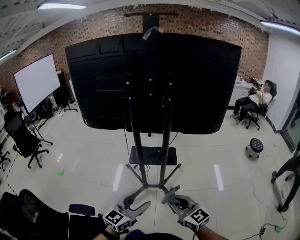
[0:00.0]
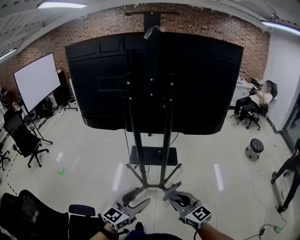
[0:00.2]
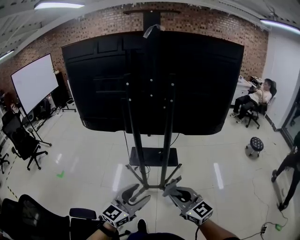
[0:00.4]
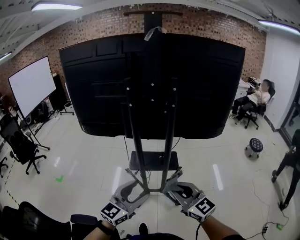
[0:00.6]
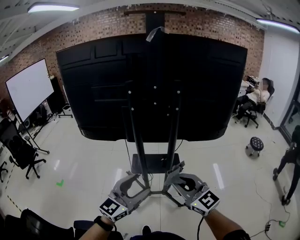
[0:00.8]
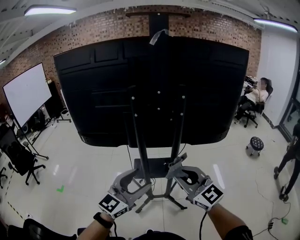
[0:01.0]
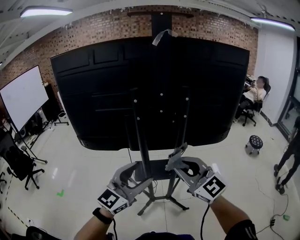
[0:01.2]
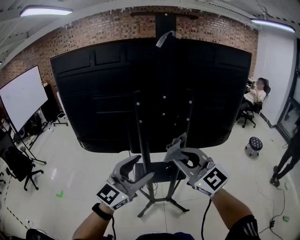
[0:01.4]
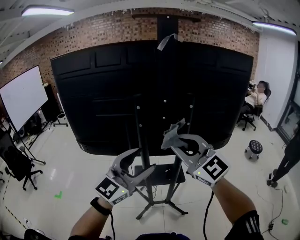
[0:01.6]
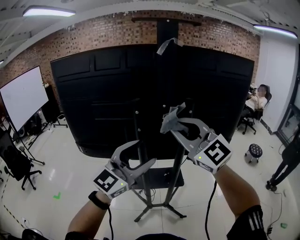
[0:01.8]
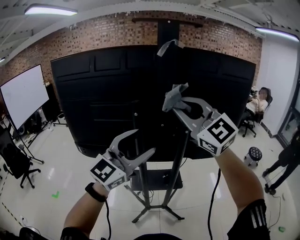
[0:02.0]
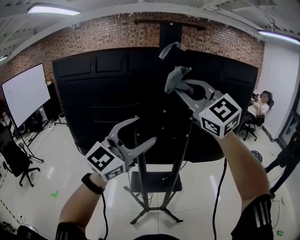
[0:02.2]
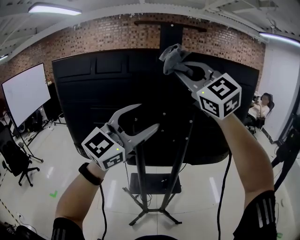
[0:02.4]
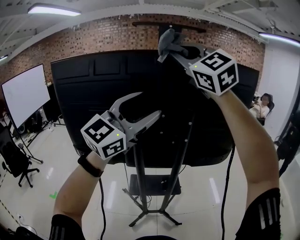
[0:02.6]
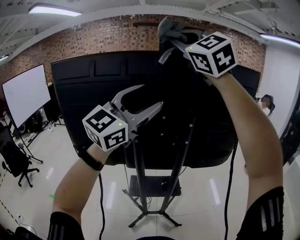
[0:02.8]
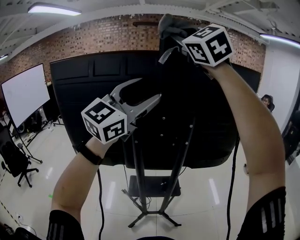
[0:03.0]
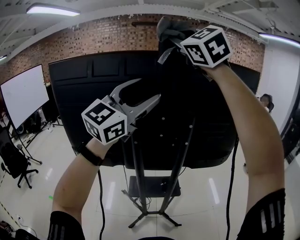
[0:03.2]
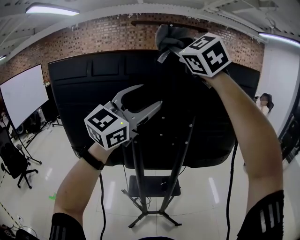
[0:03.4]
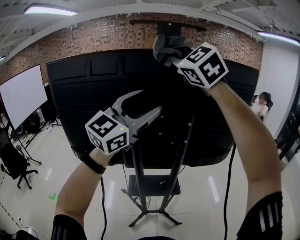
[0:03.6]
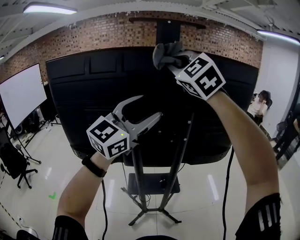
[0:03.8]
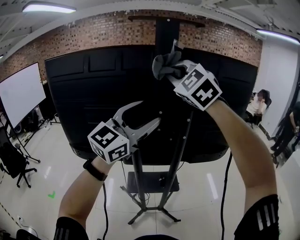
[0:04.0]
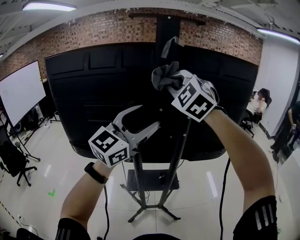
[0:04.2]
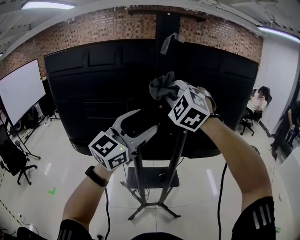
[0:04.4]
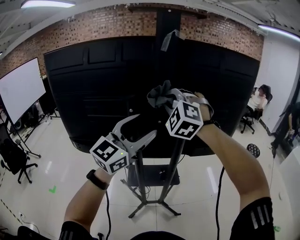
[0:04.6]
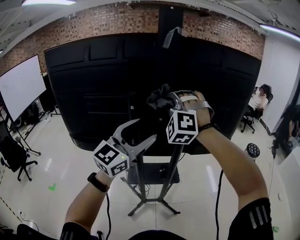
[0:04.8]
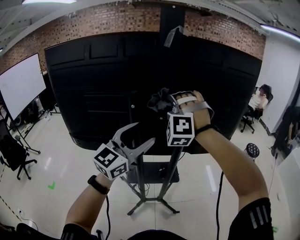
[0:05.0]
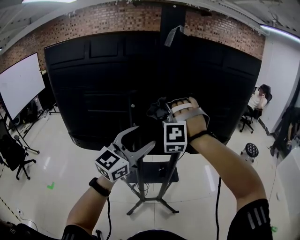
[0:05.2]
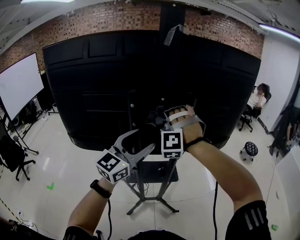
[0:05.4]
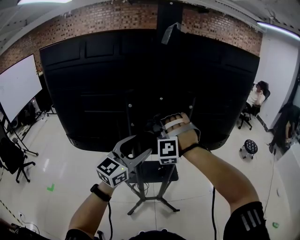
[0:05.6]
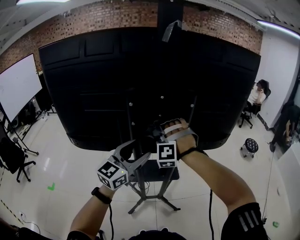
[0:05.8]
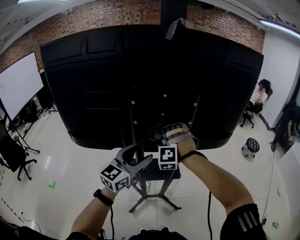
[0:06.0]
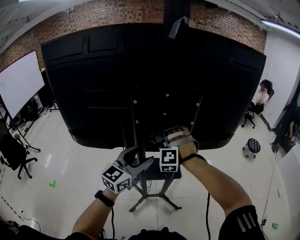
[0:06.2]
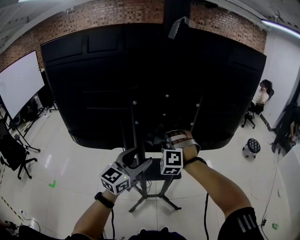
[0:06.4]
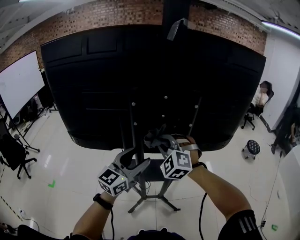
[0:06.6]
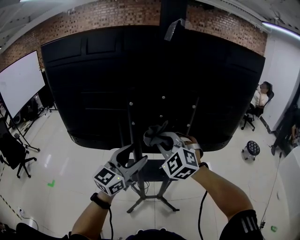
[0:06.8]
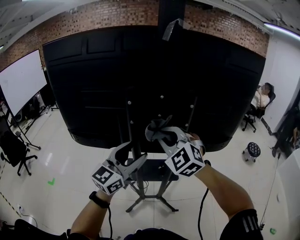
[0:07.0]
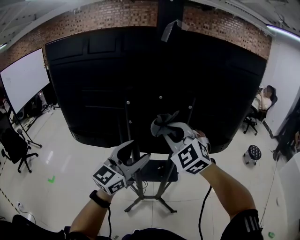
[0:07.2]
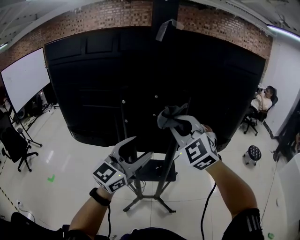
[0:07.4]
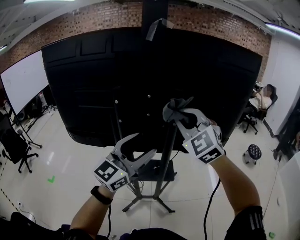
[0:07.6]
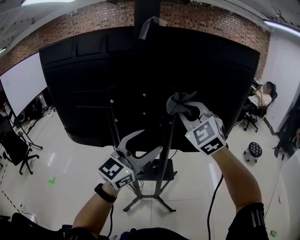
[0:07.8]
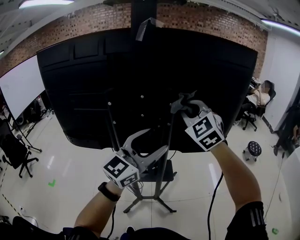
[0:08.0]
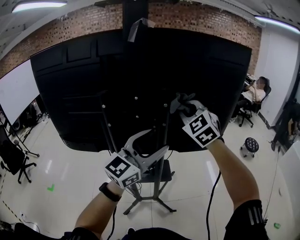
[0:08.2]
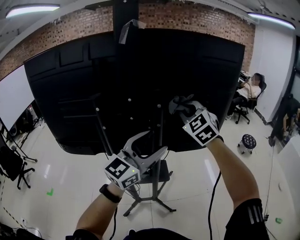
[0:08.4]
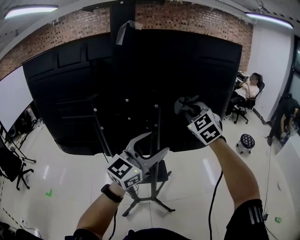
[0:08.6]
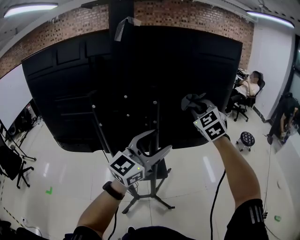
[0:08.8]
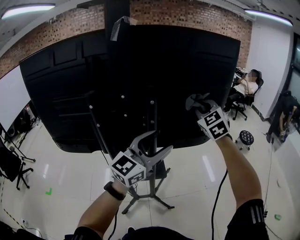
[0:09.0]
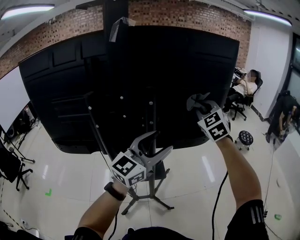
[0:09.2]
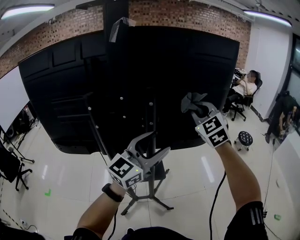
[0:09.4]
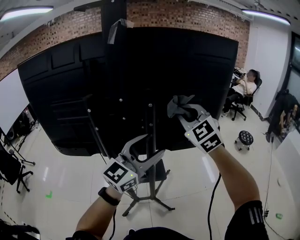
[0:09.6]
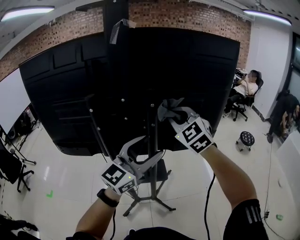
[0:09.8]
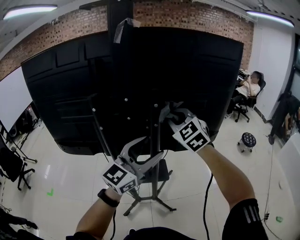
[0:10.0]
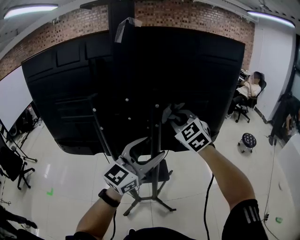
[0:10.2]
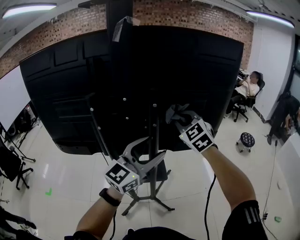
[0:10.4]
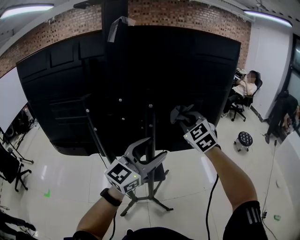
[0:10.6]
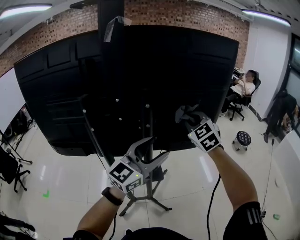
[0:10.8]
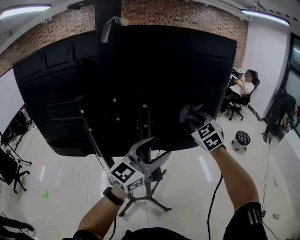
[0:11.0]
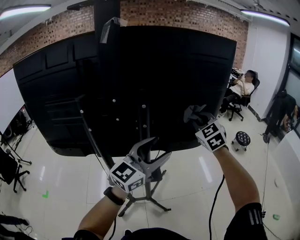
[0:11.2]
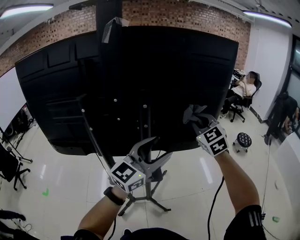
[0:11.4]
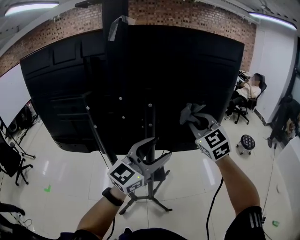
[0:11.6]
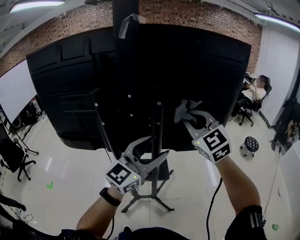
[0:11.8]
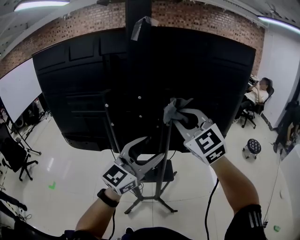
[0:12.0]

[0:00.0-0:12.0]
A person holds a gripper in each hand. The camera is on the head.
0:00.0 to 0:01.6: The right gripper shifts approximately 40 cm upward, forward and to the left, and rotates roughly 40 degrees. Meanwhile the left gripper shifts about 35 cm forward and upward, and changes its angle by roughly 30 degrees.
0:01.6 to 0:03.0: Both grippers travel together upward and forward, about 35 cm. The right gripper changes its angle by roughly 30 degrees.
0:03.0 to 0:04.4: The left gripper shifts some 15 cm downward. The right gripper goes roughly 25 cm downward, and swivels about 30 degrees.
0:04.4 to 0:06.0: The grippers both shift downward by some 25 cm. The right gripper changes its angle by roughly 40 degrees.
0:06.0 to 0:07.6: The left gripper goes roughly 10 cm upward and to the right. The right gripper shifts about 20 cm upward and to the right, and rolls clockwise, seen from behind, by some 50 degrees.
0:07.6 to 0:09.0: The left gripper shifts some 10 cm to the right. Meanwhile the right gripper is displaced to the right and forward by roughly 20 cm, and swivels some 20 degrees.
0:09.0 to 0:10.4: The right gripper shifts about 10 cm to the left.
0:10.4 to 0:12.0: The right gripper travels backward and upward by about 10 cm, and travels to the right and back again, some 10 cm each way.

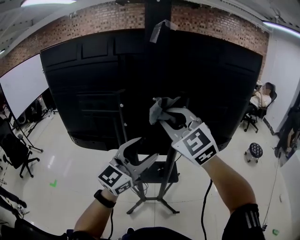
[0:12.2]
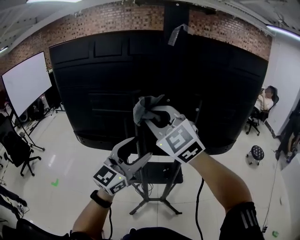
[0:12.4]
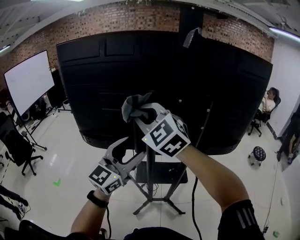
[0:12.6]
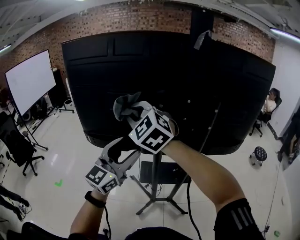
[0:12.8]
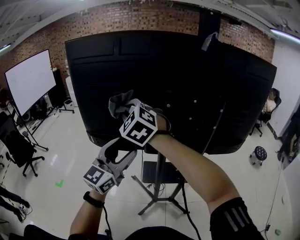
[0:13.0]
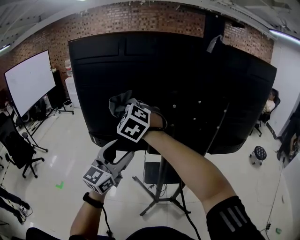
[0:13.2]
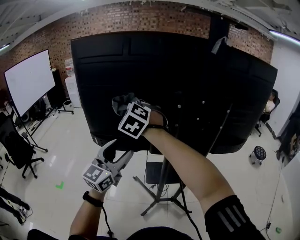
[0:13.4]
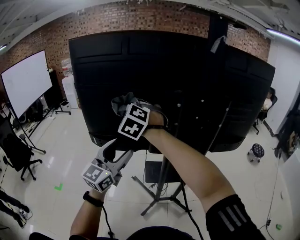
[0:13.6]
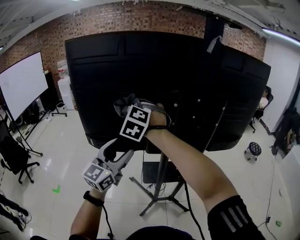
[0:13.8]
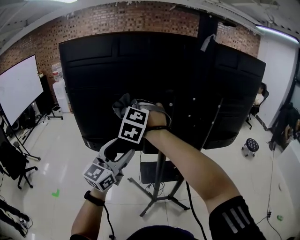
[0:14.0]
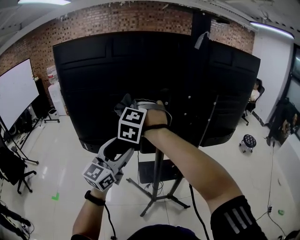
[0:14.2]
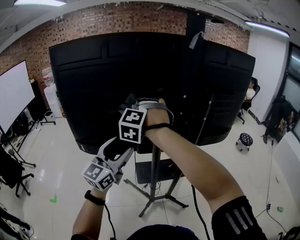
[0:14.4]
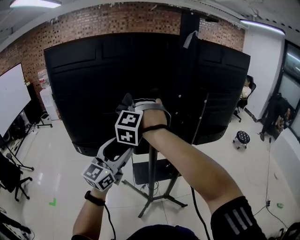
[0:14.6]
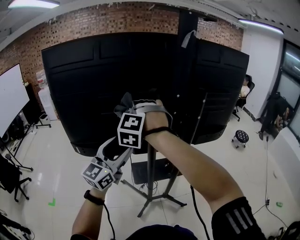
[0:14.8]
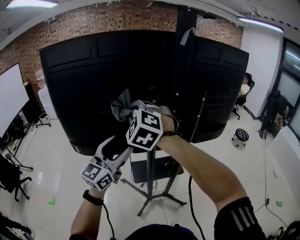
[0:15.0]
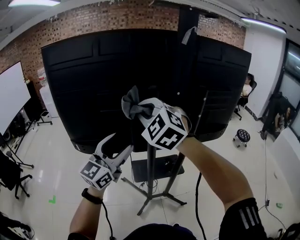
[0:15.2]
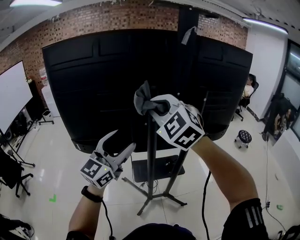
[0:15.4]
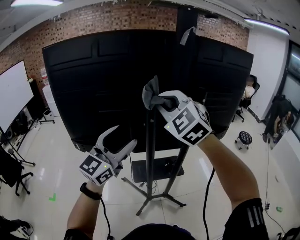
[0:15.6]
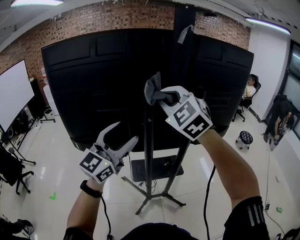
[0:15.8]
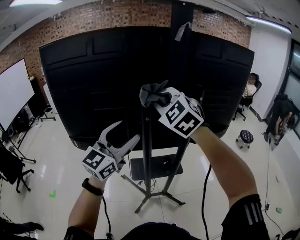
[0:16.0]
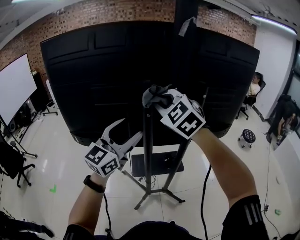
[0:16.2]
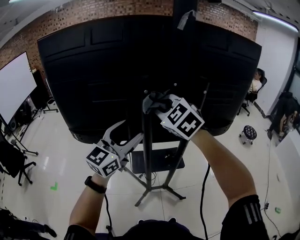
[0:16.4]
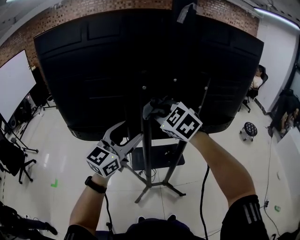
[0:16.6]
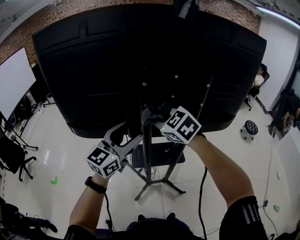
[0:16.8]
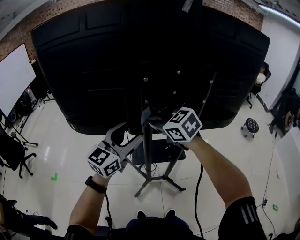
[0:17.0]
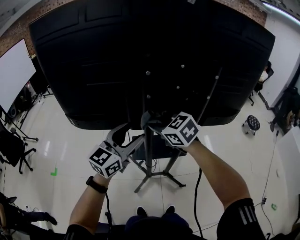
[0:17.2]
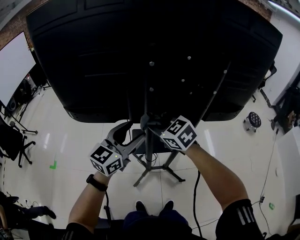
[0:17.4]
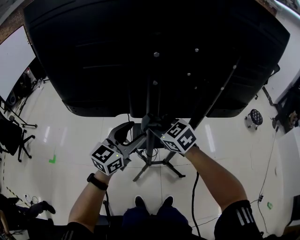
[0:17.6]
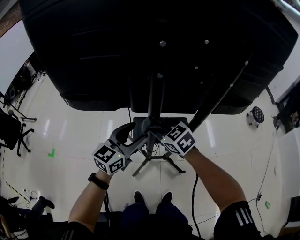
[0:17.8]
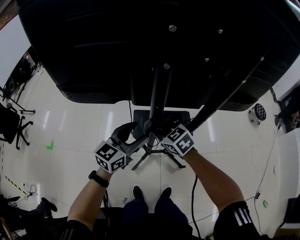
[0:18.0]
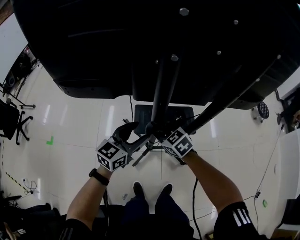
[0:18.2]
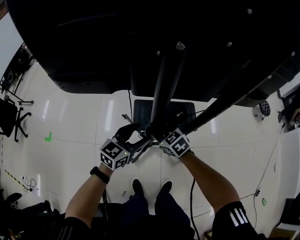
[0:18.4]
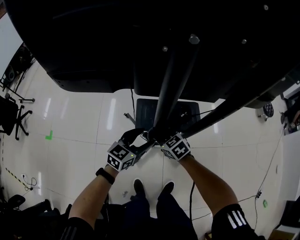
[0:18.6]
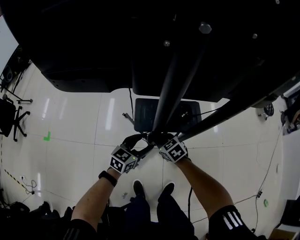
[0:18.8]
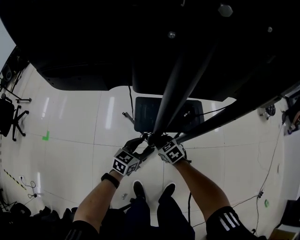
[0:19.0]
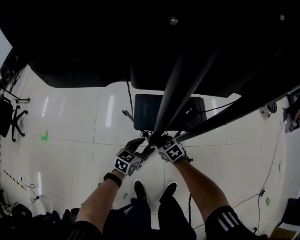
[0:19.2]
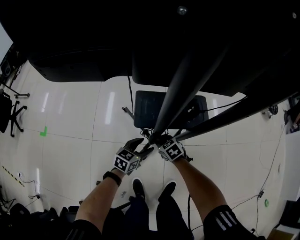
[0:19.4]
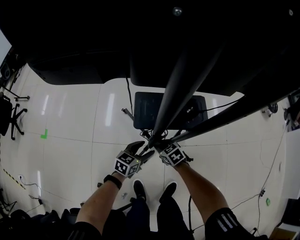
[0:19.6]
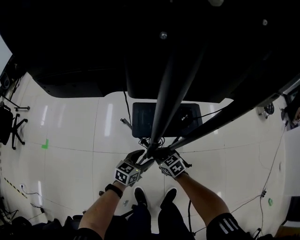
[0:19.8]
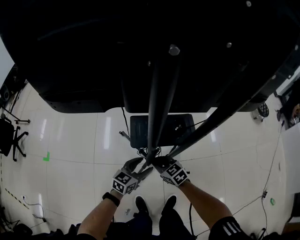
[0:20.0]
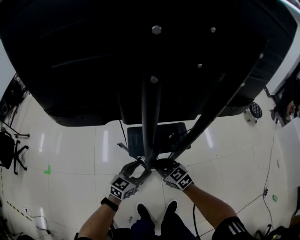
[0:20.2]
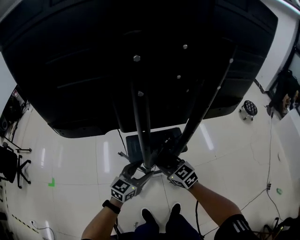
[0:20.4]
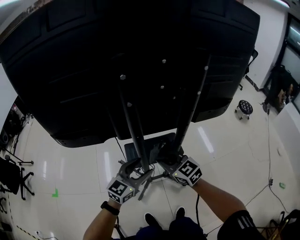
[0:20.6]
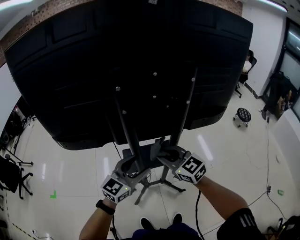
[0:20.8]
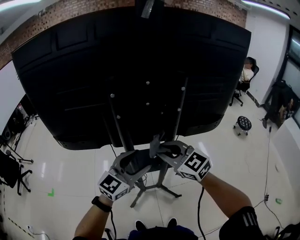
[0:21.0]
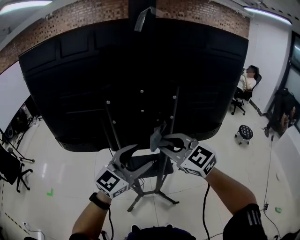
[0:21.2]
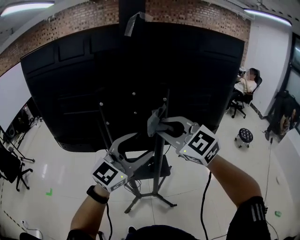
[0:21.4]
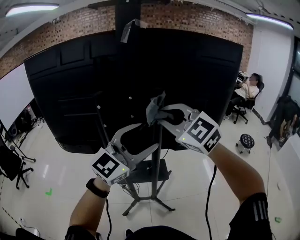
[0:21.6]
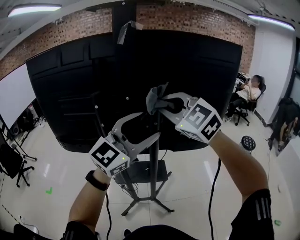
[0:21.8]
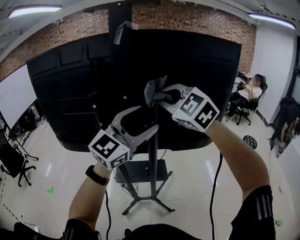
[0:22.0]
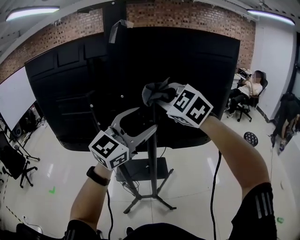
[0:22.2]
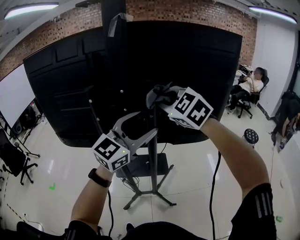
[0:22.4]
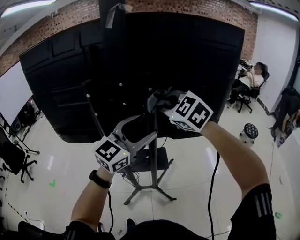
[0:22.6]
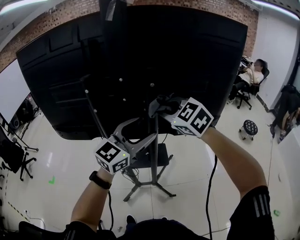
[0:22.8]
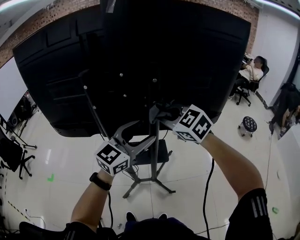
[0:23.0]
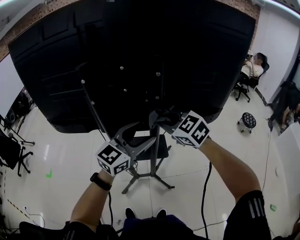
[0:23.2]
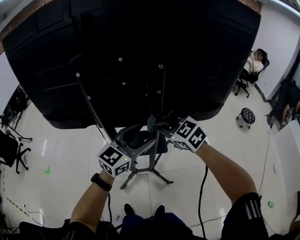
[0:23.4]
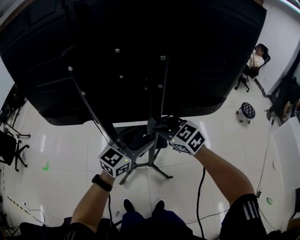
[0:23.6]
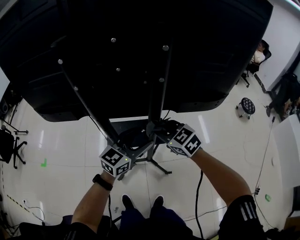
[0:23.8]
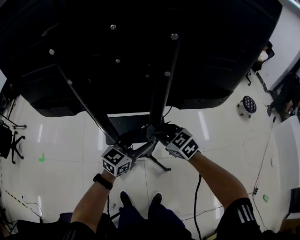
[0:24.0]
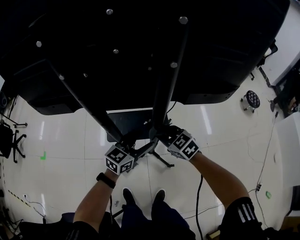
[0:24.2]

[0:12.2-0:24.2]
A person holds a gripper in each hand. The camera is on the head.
0:12.2 to 0:13.8: The two grippers go approximately 30 cm to the left. The right gripper changes its angle by some 40 degrees.
0:13.8 to 0:15.2: The left gripper is displaced to the right by some 5 cm; the right gripper goes approximately 15 cm to the right.
0:15.2 to 0:16.6: The right gripper heads downward, to the right and forward, covering approximately 15 cm, and changes its angle by approximately 20 degrees; the left gripper travels to the right by approximately 5 cm.
0:16.6 to 0:18.2: Both grippers move downward, approximately 35 cm. The right gripper swivels some 30 degrees, while the left gripper swivels about 20 degrees.
0:18.2 to 0:19.8: The two grippers go approximately 30 cm downward. The left gripper turns by roughly 20 degrees.
0:19.8 to 0:21.2: Both grippers move upward, about 60 cm. The right gripper tilts its fingers roughly 30 degrees upward. The left gripper angles its fingers upward, by some 30 degrees.
0:21.2 to 0:22.6: The right gripper goes roughly 15 cm forward, to the right and upward, and changes its angle by about 20 degrees, while the left gripper goes some 10 cm to the right and upward.
0:22.6 to 0:24.2: The two grippers go about 40 cm downward. The left gripper rotates some 30 degrees; the right gripper turns by approximately 30 degrees.
